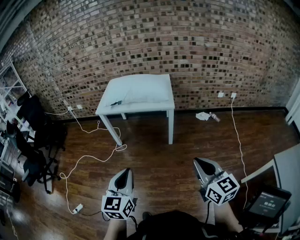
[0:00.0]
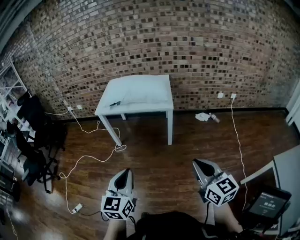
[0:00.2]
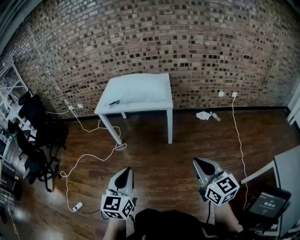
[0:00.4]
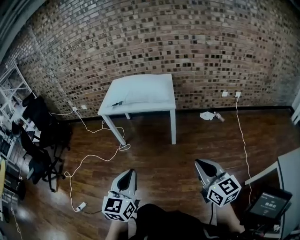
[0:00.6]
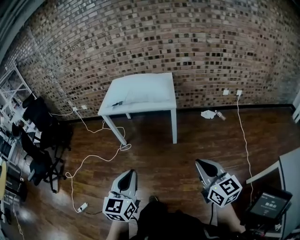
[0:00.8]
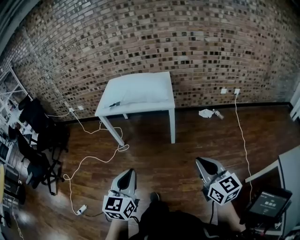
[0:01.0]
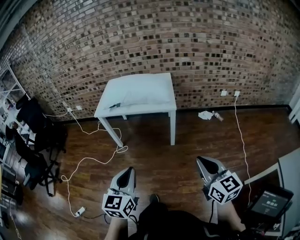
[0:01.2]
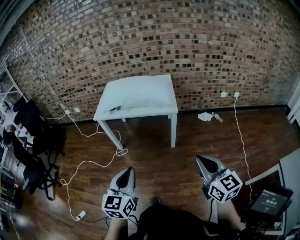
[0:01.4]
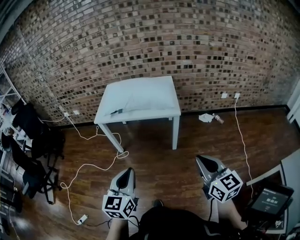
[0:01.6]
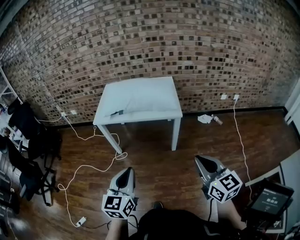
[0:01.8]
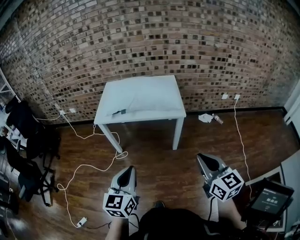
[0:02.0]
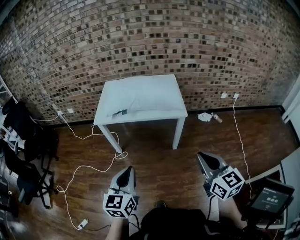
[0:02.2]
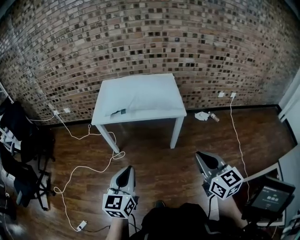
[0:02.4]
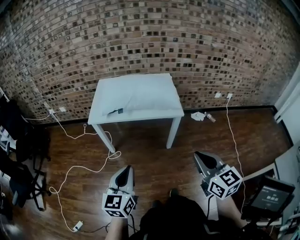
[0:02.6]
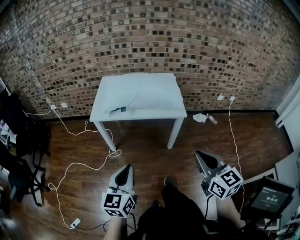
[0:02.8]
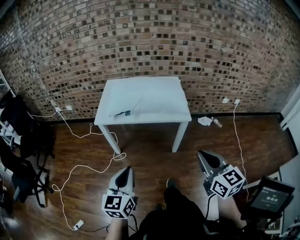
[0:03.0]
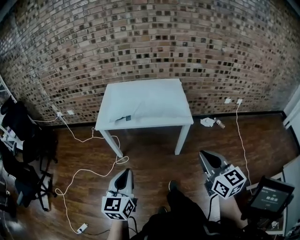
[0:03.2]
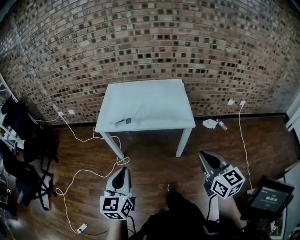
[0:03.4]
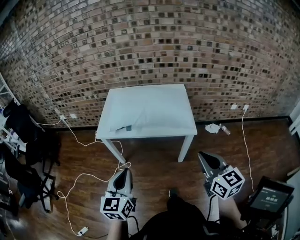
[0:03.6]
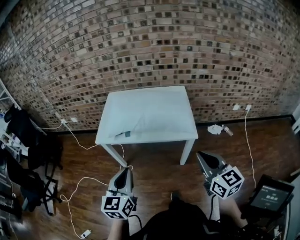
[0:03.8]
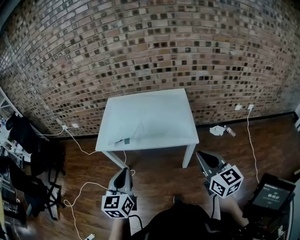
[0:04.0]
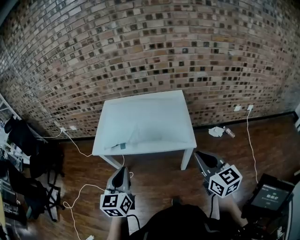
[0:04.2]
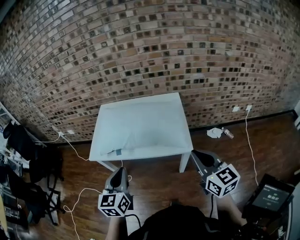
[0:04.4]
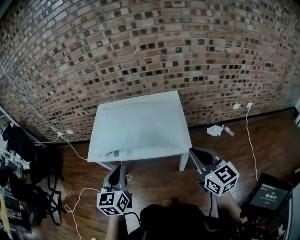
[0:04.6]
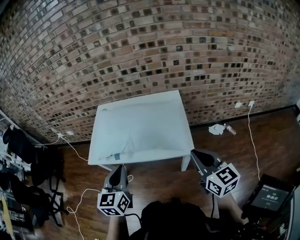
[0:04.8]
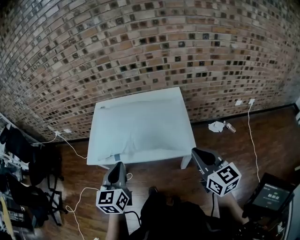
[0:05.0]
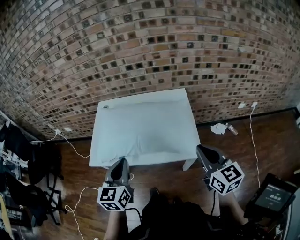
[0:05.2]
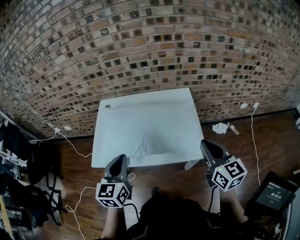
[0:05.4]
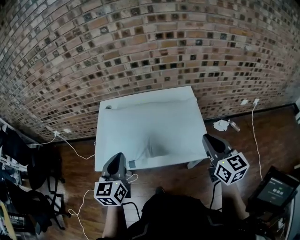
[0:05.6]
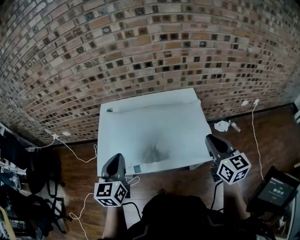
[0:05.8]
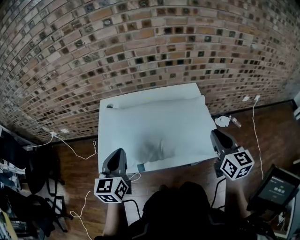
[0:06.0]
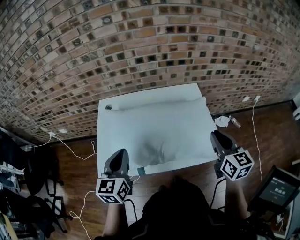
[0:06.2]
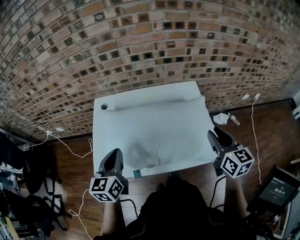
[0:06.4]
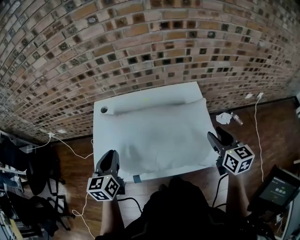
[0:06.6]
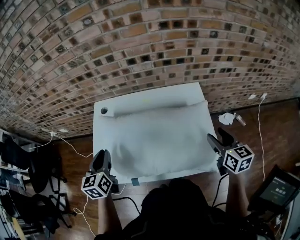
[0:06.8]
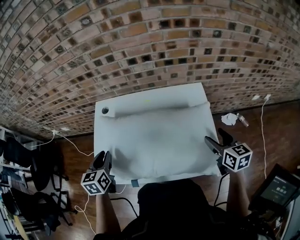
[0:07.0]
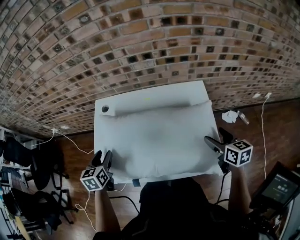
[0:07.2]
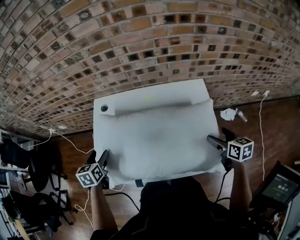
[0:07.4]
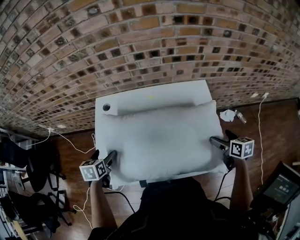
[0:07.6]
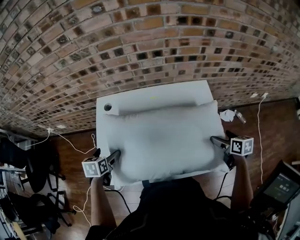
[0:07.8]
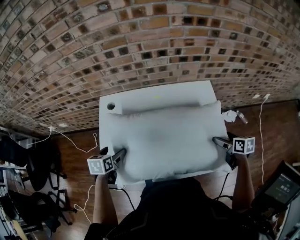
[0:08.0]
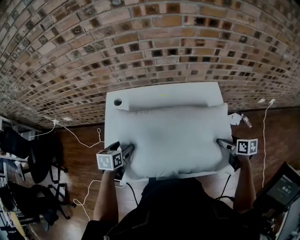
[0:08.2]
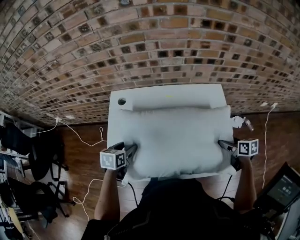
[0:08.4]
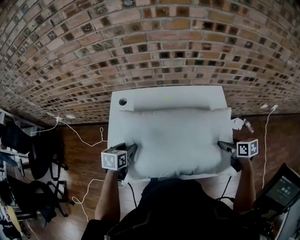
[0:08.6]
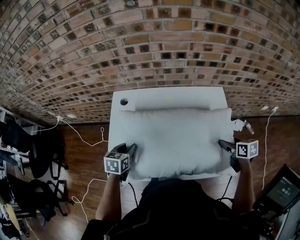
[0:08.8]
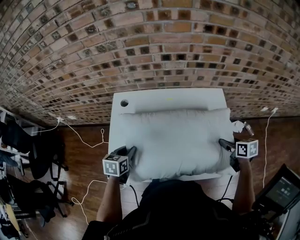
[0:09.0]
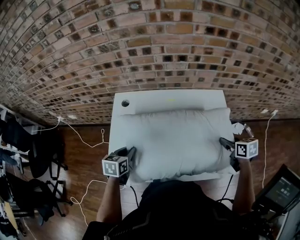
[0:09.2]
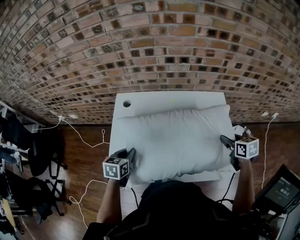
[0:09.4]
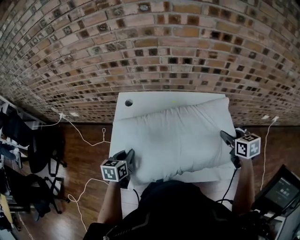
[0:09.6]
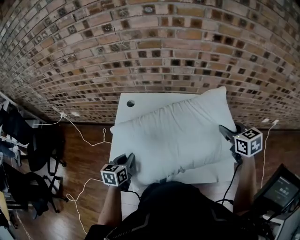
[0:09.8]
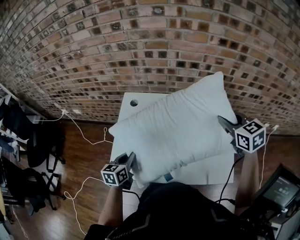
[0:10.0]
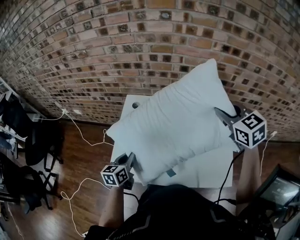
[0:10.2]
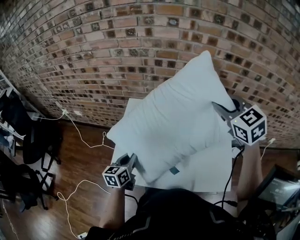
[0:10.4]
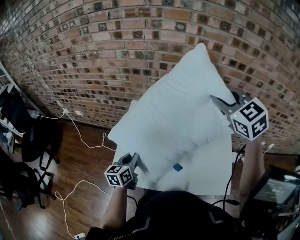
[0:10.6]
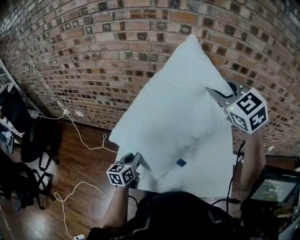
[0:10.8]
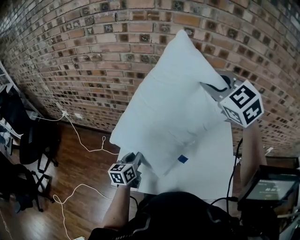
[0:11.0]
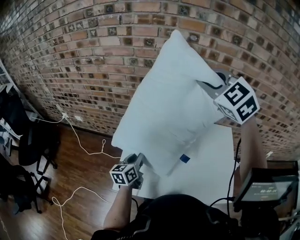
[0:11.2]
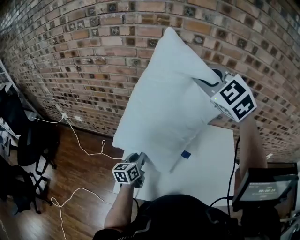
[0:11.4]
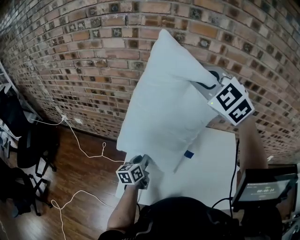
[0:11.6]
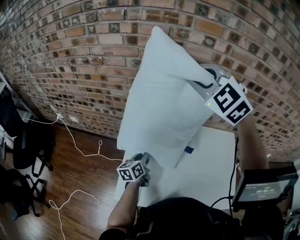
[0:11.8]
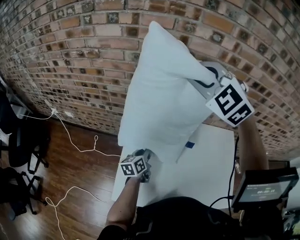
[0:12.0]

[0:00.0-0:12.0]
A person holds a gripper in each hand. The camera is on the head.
0:00.0 to 0:01.6: The two grippers go some 15 cm forward.
0:01.6 to 0:03.0: The left gripper goes approximately 15 cm to the left and forward. Meanwhile the right gripper goes roughly 15 cm forward and to the left.
0:03.0 to 0:04.4: The right gripper goes approximately 30 cm forward and to the right. Meanwhile the left gripper goes approximately 25 cm forward.
0:04.4 to 0:06.0: The left gripper moves forward and to the left, about 30 cm. The right gripper moves forward, roughly 20 cm.
0:06.0 to 0:07.6: The left gripper shifts roughly 25 cm downward, forward and to the left, angles its fingers downward, by roughly 40 degrees, and opens up, while the right gripper goes about 25 cm downward, forward and to the right, changes its angle by approximately 30 degrees, and opens up.
0:07.6 to 0:09.0: The left gripper changes place by about 5 cm, and closes up; the right gripper closes up.
0:09.0 to 0:10.4: The right gripper goes roughly 35 cm upward and to the left, and rotates around the line of its fingers by some 50 degrees, counterclockwise from behind. The left gripper shifts by about 5 cm, and swivels about 30 degrees.
0:10.4 to 0:12.0: The right gripper moves to the left and forward, about 30 cm, and rotates roughly 40 degrees. The left gripper goes roughly 15 cm forward.

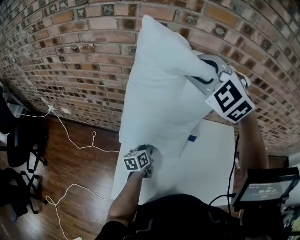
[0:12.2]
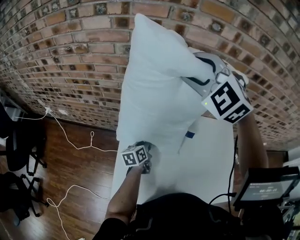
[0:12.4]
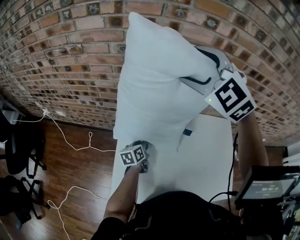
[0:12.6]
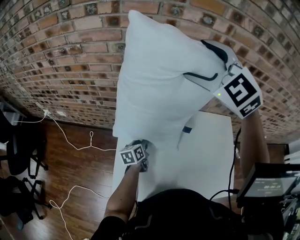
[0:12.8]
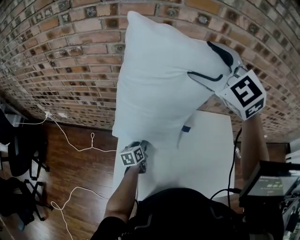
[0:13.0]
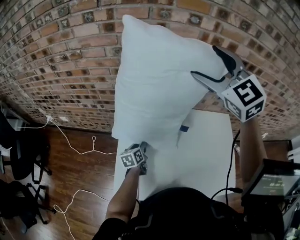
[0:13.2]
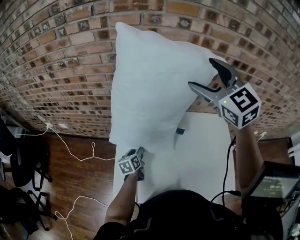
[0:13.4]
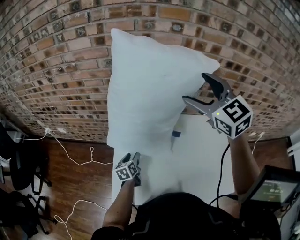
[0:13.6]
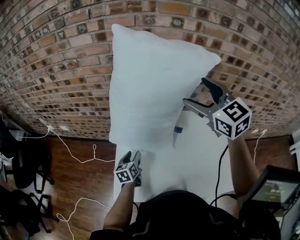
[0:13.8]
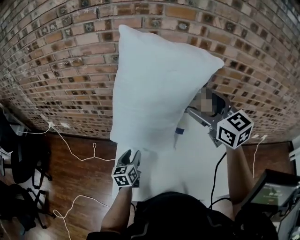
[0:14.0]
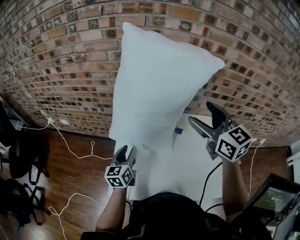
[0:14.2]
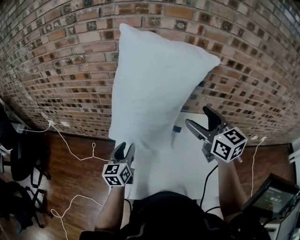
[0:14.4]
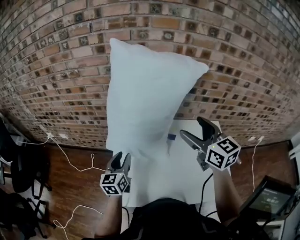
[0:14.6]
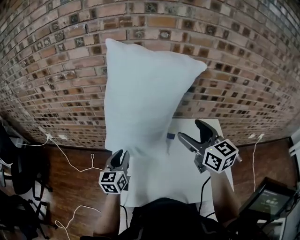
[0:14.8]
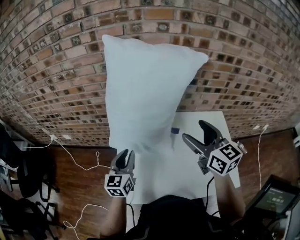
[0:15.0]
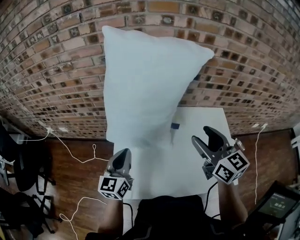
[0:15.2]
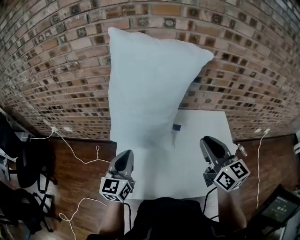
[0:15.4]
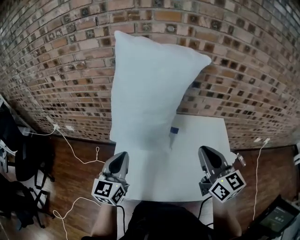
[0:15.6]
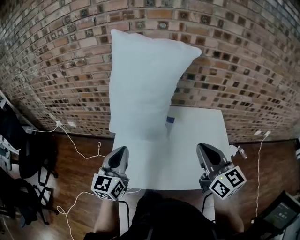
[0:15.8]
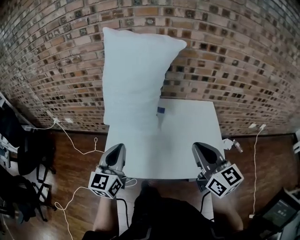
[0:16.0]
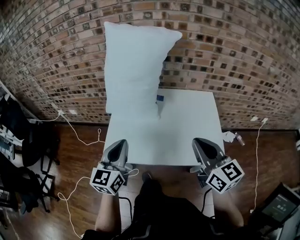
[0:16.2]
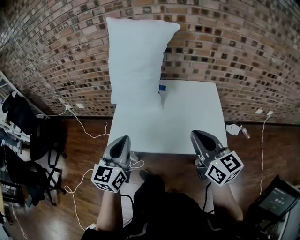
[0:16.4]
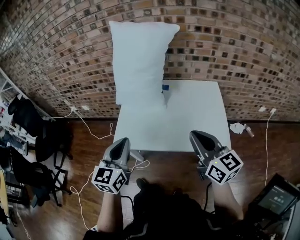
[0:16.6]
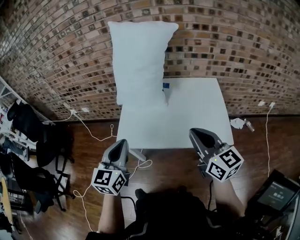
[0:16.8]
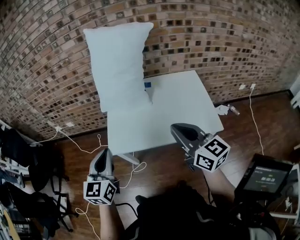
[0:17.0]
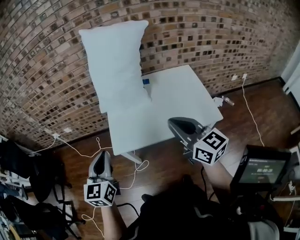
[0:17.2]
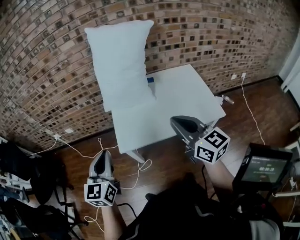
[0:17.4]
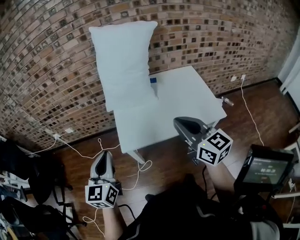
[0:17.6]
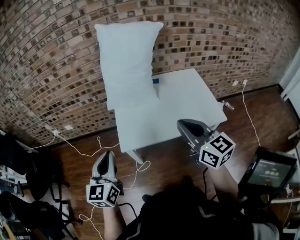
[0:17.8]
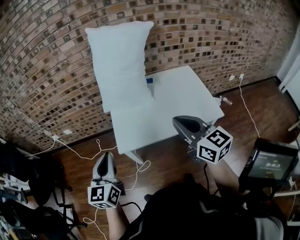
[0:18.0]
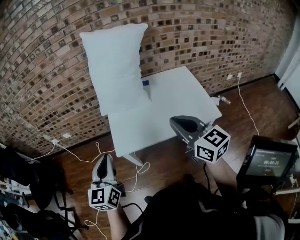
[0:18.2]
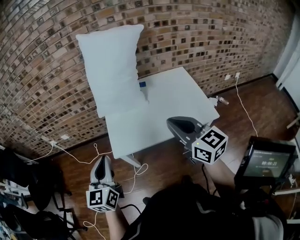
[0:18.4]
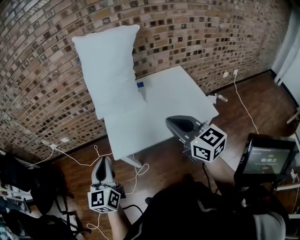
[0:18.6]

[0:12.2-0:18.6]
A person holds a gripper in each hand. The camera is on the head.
0:12.2 to 0:13.8: The left gripper moves backward, some 5 cm, and opens up; the right gripper moves to the right and backward, roughly 15 cm, twists approximately 40 degrees clockwise, seen from behind, and opens its fingers.
0:13.8 to 0:15.4: The right gripper moves backward and downward, some 20 cm, swivels approximately 30 degrees, and closes its fingers. The left gripper goes roughly 20 cm upward, swivels about 30 degrees, and closes up.
0:15.4 to 0:17.0: The grippers both shift backward by roughly 30 cm.
0:17.0 to 0:18.6: Both grippers travel together to the left, some 5 cm.

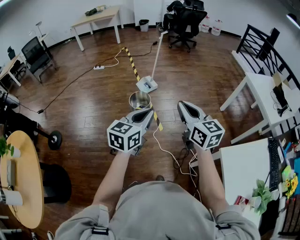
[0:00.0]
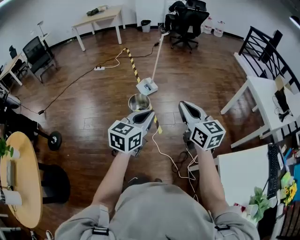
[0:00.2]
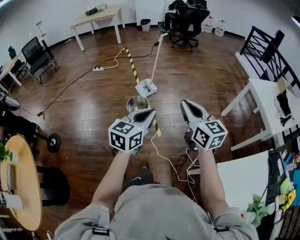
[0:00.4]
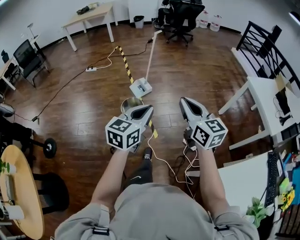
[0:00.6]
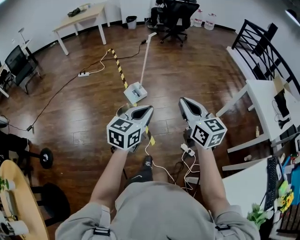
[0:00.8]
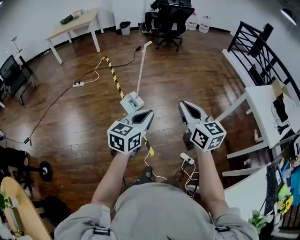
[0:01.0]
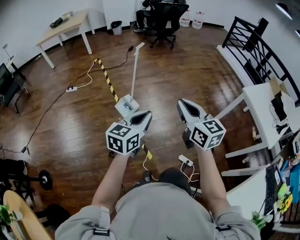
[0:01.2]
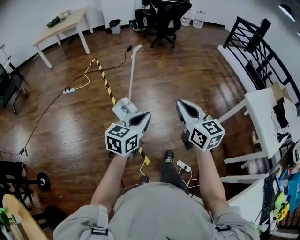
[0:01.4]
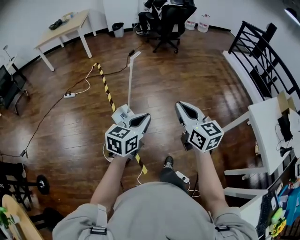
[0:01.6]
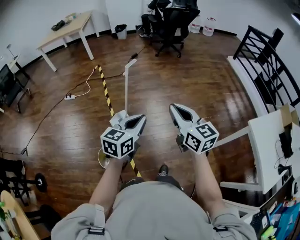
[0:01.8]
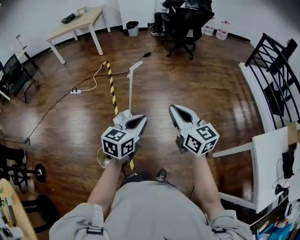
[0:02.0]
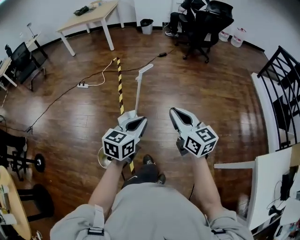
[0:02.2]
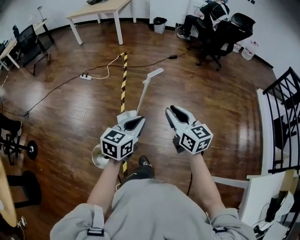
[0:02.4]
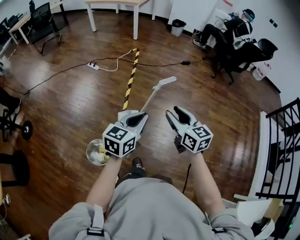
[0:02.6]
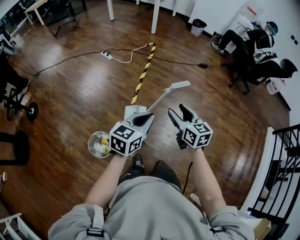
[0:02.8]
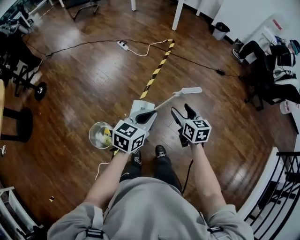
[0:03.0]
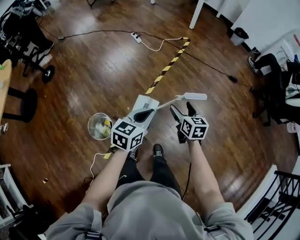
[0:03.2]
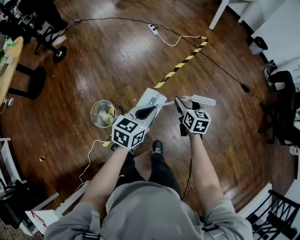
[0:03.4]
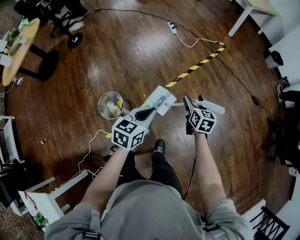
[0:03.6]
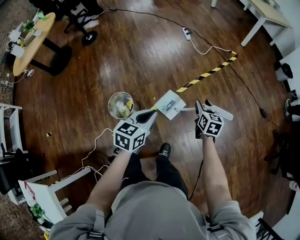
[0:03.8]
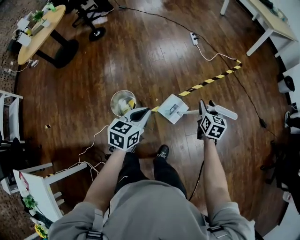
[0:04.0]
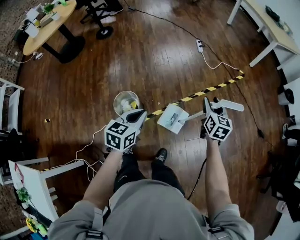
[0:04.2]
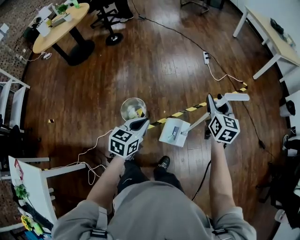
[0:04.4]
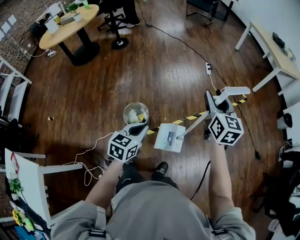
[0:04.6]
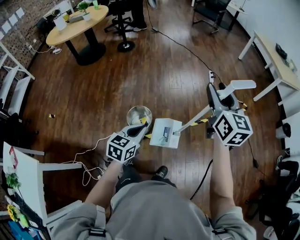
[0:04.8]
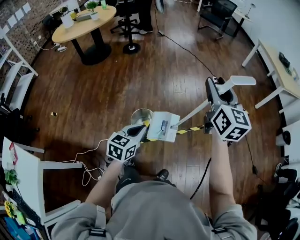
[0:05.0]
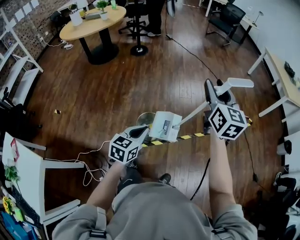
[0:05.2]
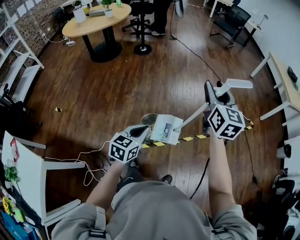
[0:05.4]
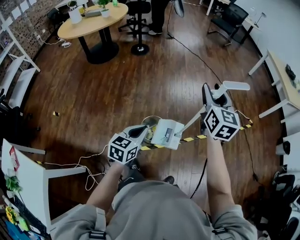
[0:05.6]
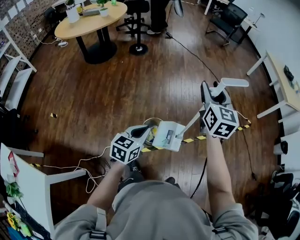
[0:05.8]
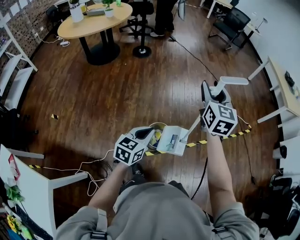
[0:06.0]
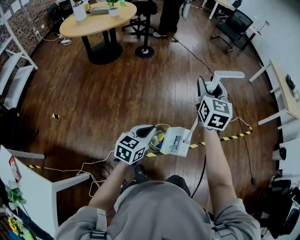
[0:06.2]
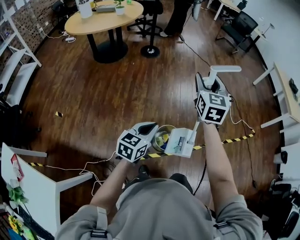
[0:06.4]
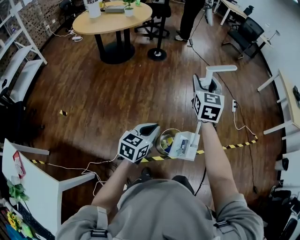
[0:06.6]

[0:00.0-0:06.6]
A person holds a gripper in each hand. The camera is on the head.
0:00.0 to 0:01.6: The two grippers travel together, forward, some 60 cm.
0:01.6 to 0:03.2: Both grippers are carried roughly 50 cm. The right gripper rotates approximately 50 degrees, and opens up; the left gripper swivels some 60 degrees.
0:03.2 to 0:05.0: The right gripper moves upward, approximately 35 cm, rotates some 50 degrees, and closes its fingers. Meanwhile the left gripper ends up approximately 35 cm from where it was, and swivels approximately 50 degrees.
0:05.0 to 0:06.6: Both grippers travel together to the left, roughly 35 cm. The right gripper turns by some 20 degrees.
